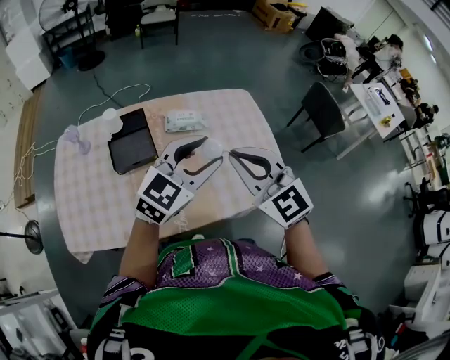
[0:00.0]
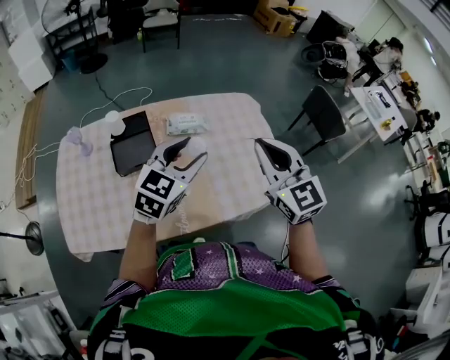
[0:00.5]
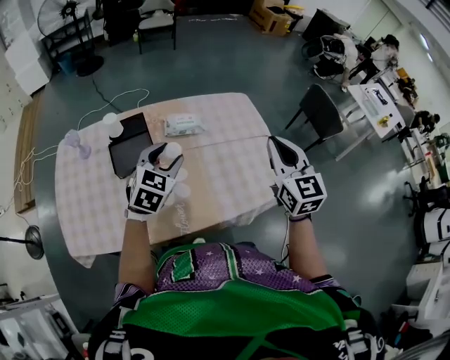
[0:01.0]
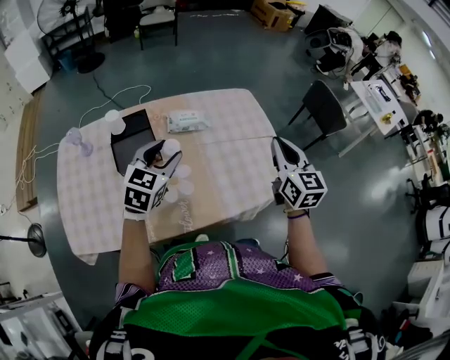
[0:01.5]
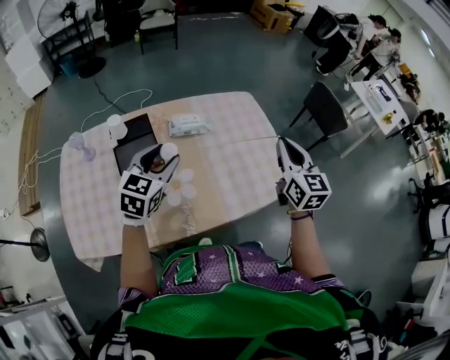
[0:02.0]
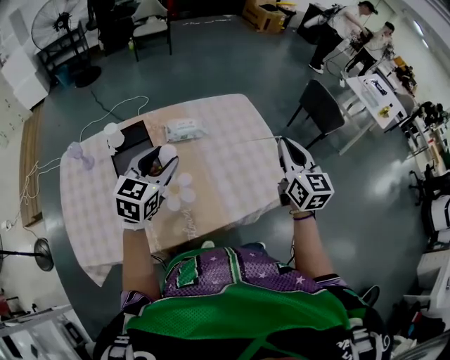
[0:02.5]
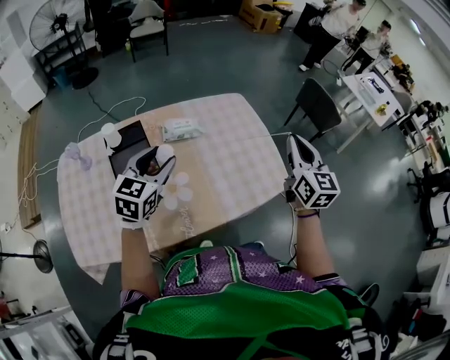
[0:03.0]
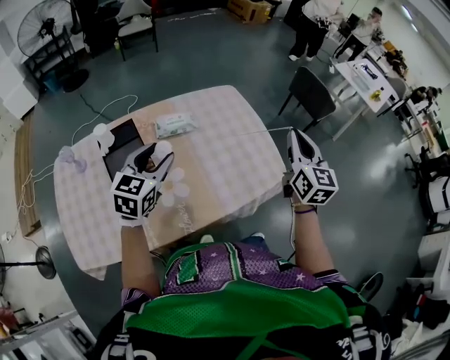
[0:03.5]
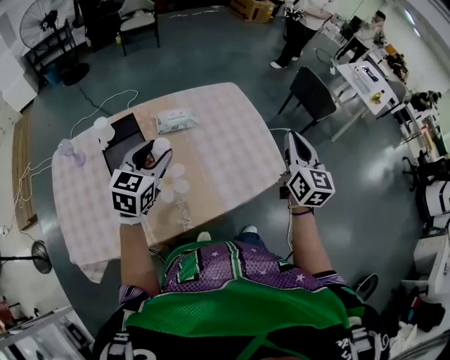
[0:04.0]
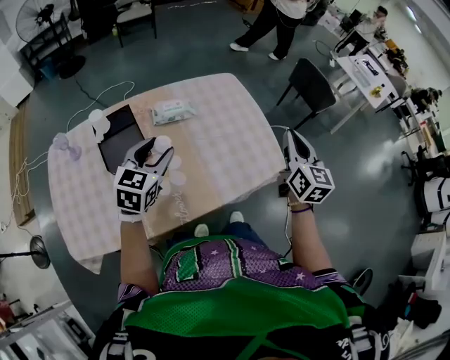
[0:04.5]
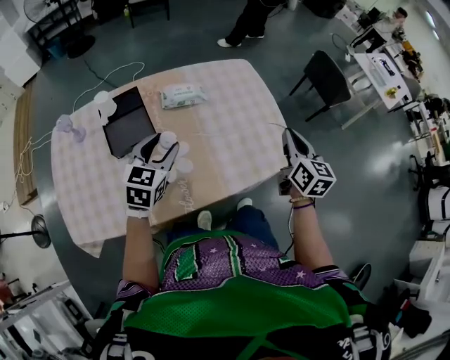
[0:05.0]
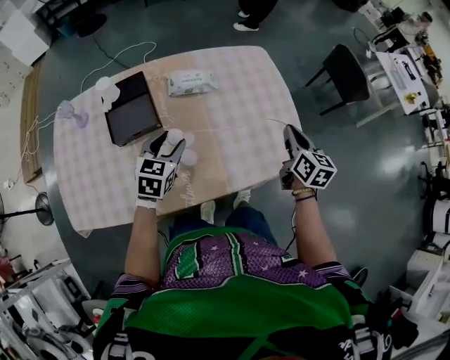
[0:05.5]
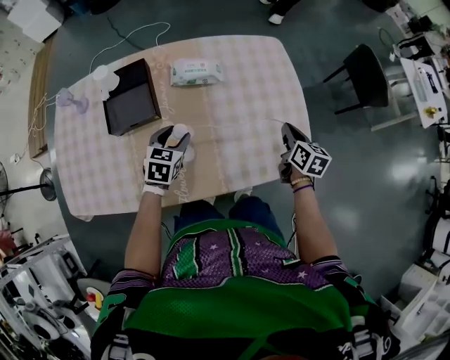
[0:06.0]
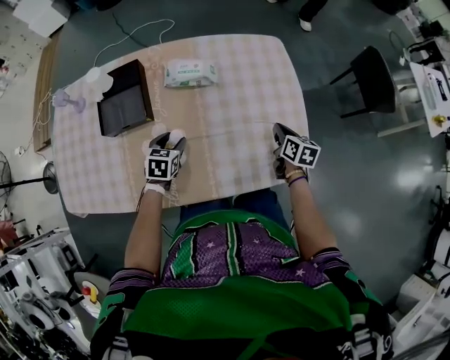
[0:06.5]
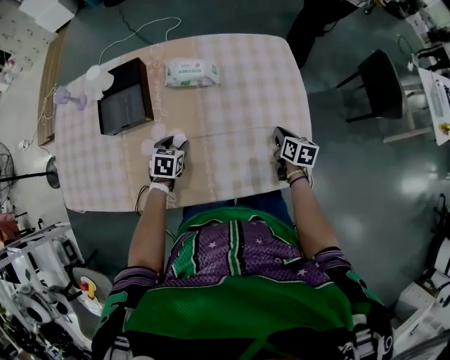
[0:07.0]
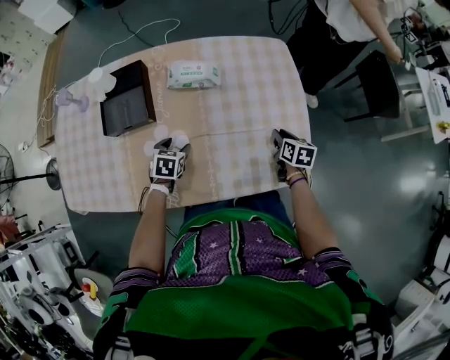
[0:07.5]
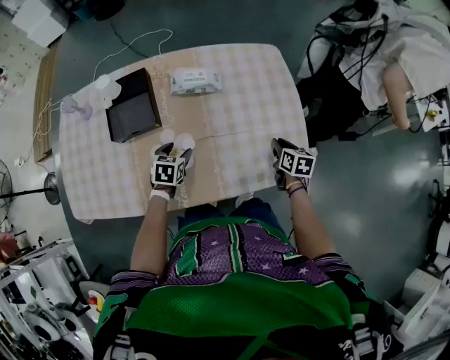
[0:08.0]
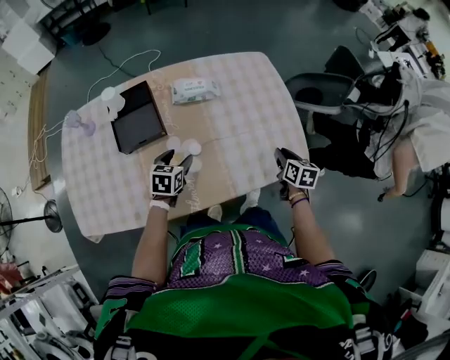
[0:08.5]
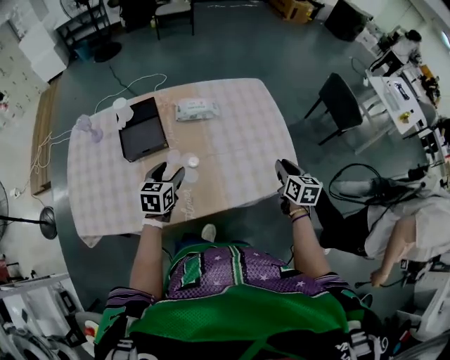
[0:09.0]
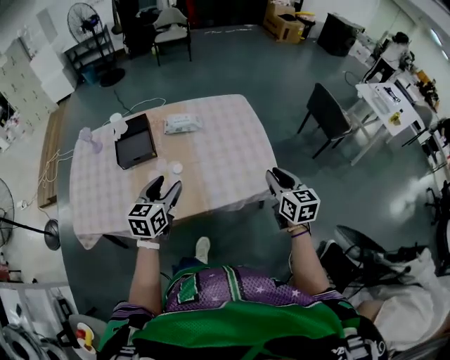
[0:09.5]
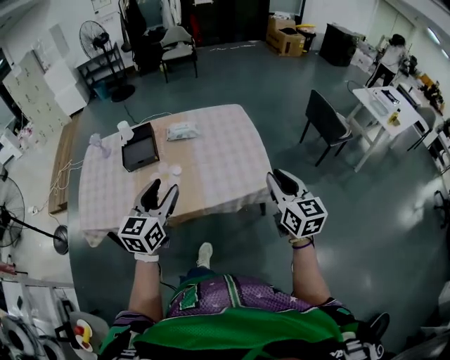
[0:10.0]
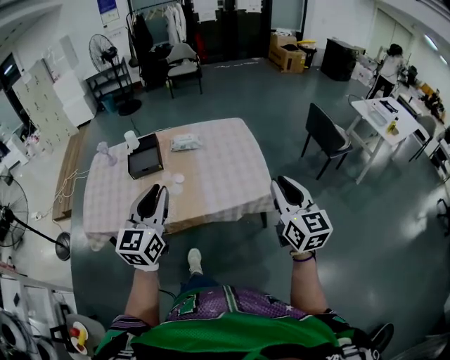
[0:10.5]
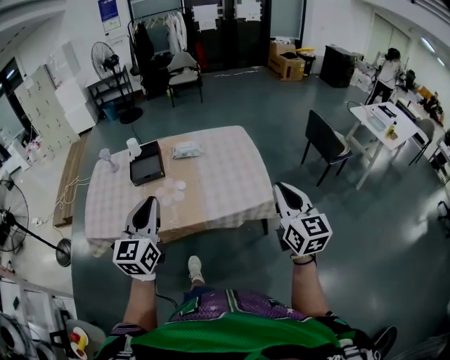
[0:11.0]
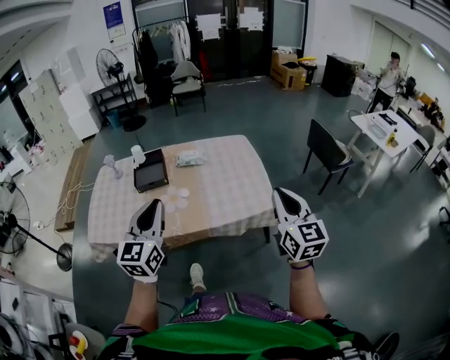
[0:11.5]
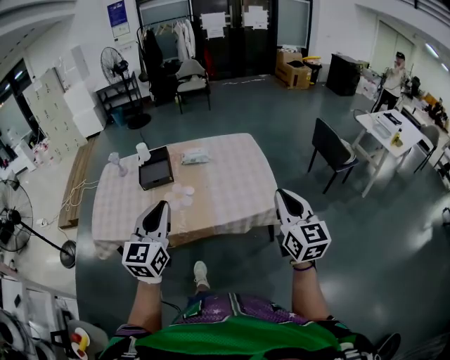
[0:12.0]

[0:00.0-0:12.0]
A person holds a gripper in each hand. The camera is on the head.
0:00.0 to 0:02.0: The left gripper is displaced to the left and downward by approximately 15 cm, and turns by approximately 20 degrees; the right gripper goes about 15 cm to the right and forward, and changes its angle by roughly 50 degrees.
0:02.0 to 0:04.0: The right gripper is displaced to the right by about 5 cm.
0:04.0 to 0:06.0: The left gripper is displaced downward by approximately 25 cm, and changes its angle by approximately 30 degrees. Meanwhile the right gripper shifts approximately 30 cm downward and forward, and rotates some 40 degrees.
0:06.0 to 0:08.0: Both grippers travel together downward, approximately 5 cm.
0:08.0 to 0:10.0: The grippers both shift upward and backward by approximately 50 cm. The right gripper tilts its fingers some 40 degrees upward. The left gripper tips its fingers upward by roughly 50 degrees.
0:10.0 to 0:12.0: The two grippers go approximately 10 cm backward and upward. The left gripper closes.

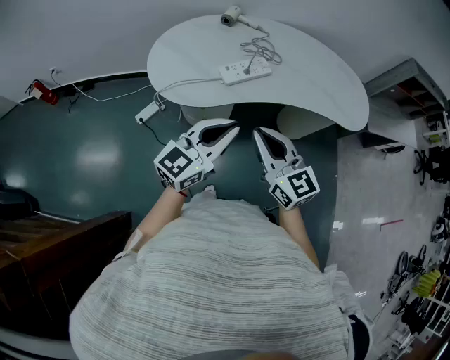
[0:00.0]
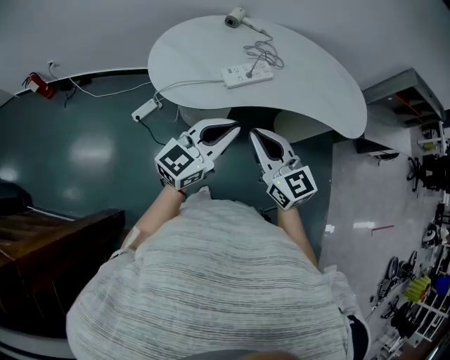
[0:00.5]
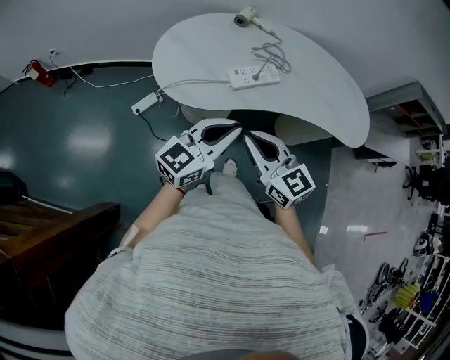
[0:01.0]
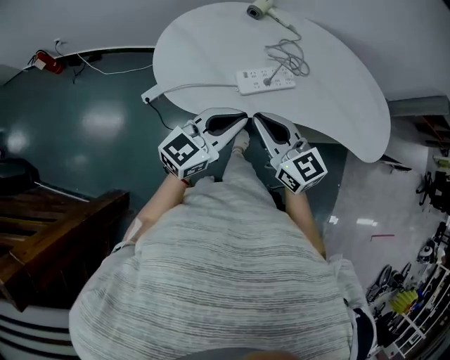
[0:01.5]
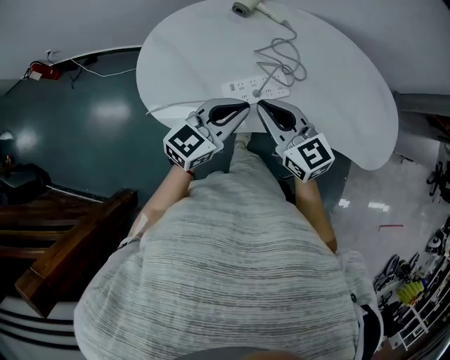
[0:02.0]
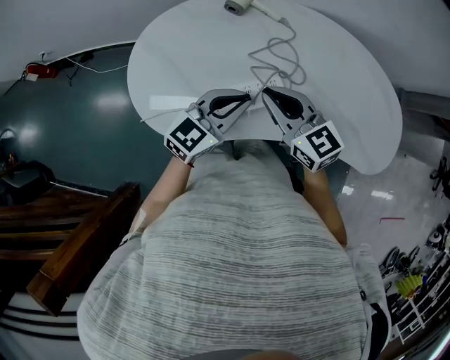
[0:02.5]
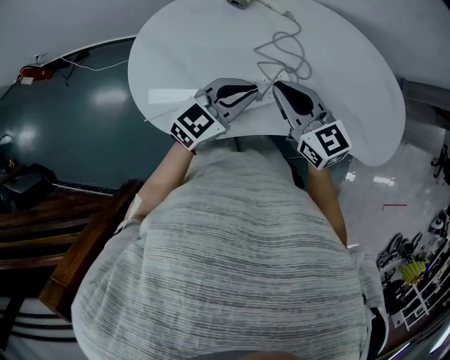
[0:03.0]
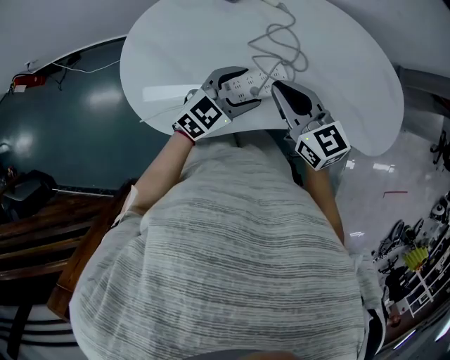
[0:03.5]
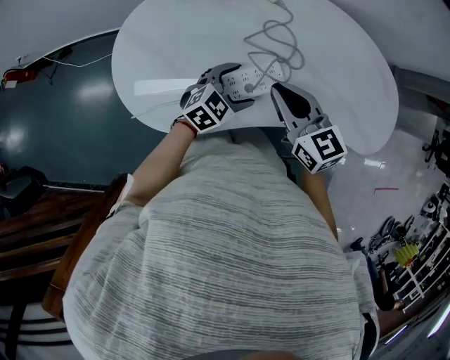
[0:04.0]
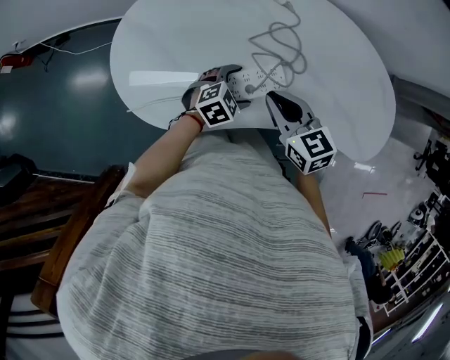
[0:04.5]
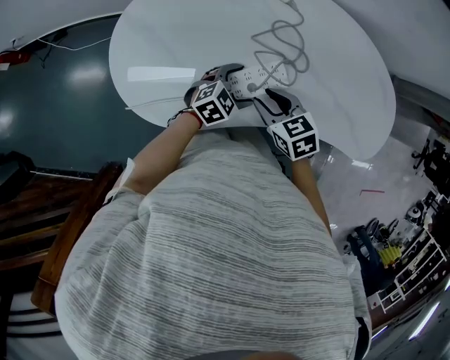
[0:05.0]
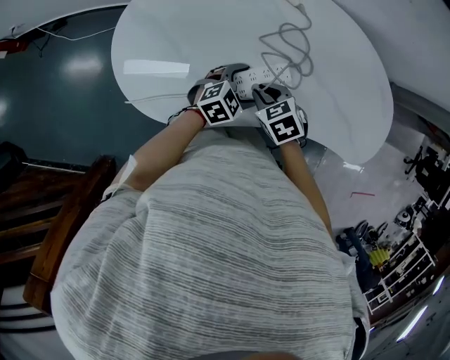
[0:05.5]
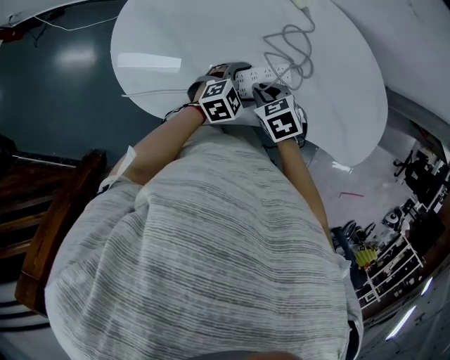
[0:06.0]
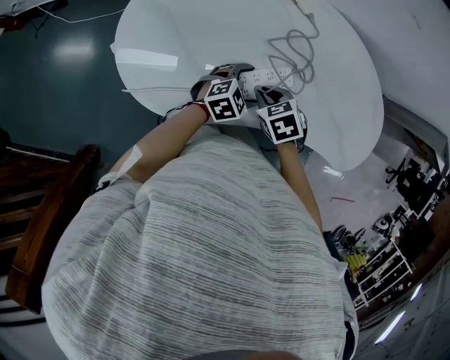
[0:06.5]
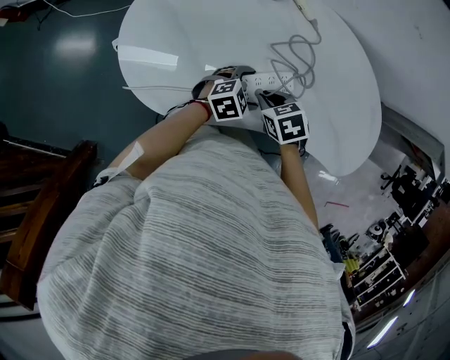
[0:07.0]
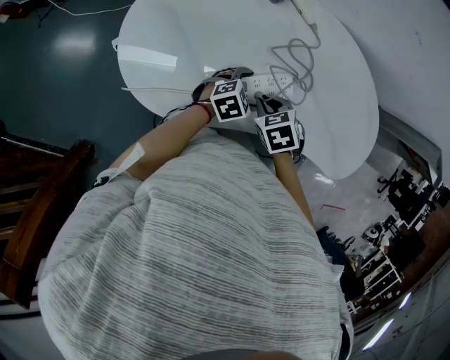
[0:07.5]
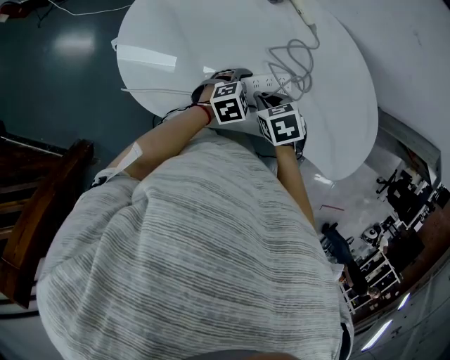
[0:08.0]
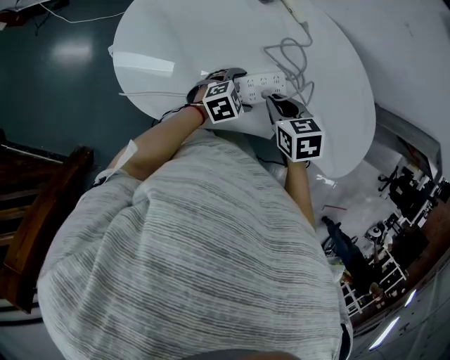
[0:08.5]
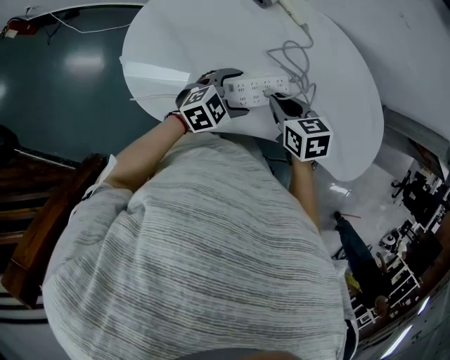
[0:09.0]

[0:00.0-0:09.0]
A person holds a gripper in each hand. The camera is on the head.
0:00.0 to 0:02.0: Both grippers move forward, about 25 cm.
0:02.0 to 0:04.5: The right gripper moves downward and forward, roughly 10 cm, and swivels roughly 20 degrees; the left gripper shifts some 20 cm downward, tilts its fingers some 40 degrees downward, and opens up.
0:04.5 to 0:07.0: The right gripper goes about 10 cm downward, angles its fingers downward, by about 40 degrees, and opens and closes again.
0:07.0 to 0:09.0: The two grippers go roughly 5 cm upward. The right gripper rotates about 20 degrees.

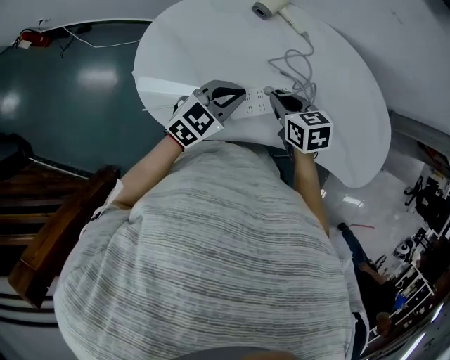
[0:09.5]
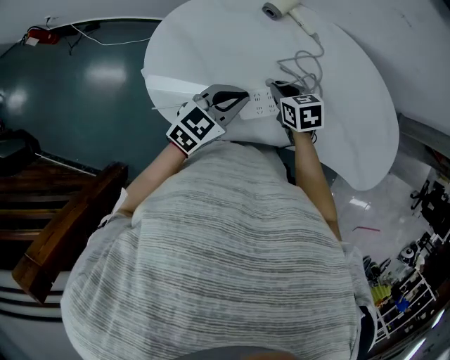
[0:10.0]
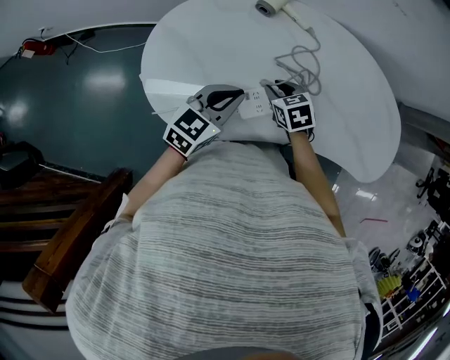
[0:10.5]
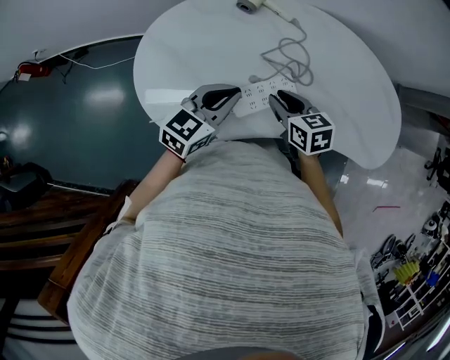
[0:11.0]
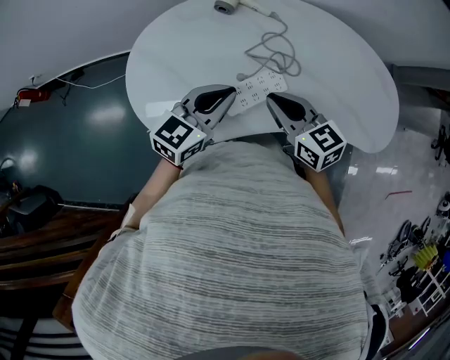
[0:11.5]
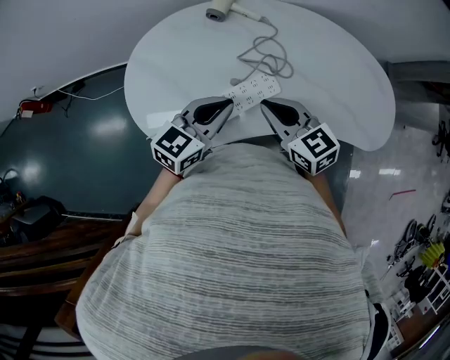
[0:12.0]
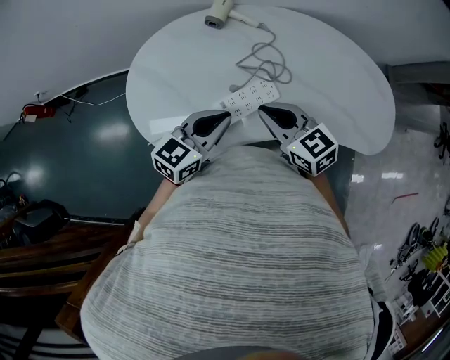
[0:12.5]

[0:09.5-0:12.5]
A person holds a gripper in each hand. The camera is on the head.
0:09.5 to 0:11.0: The right gripper reaches roughly 10 cm downward, then returns.
0:11.0 to 0:12.5: The right gripper shifts about 10 cm upward, rotates approximately 20 degrees, and closes. The left gripper shifts by some 5 cm.

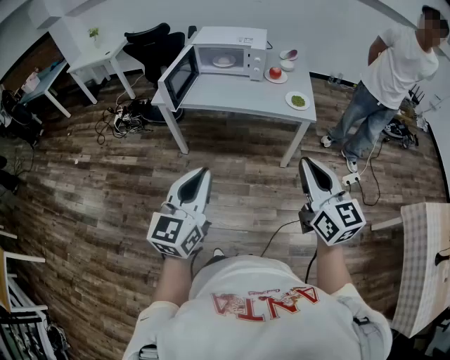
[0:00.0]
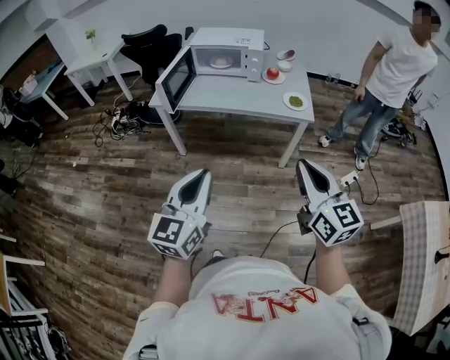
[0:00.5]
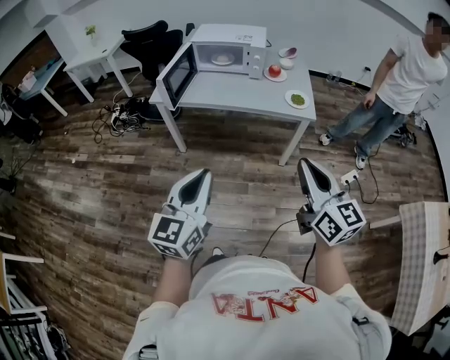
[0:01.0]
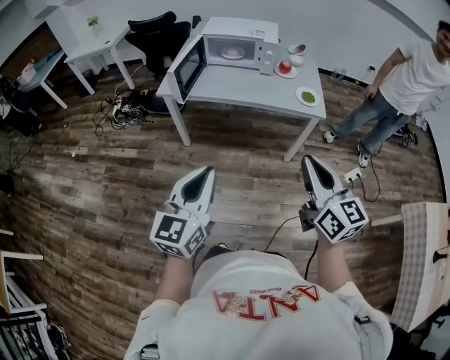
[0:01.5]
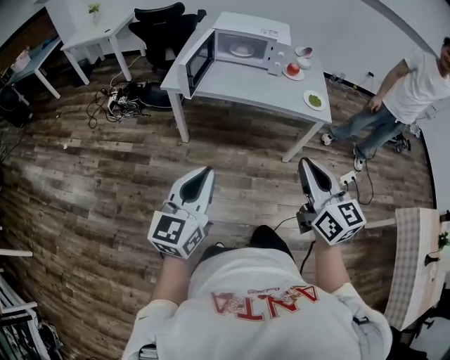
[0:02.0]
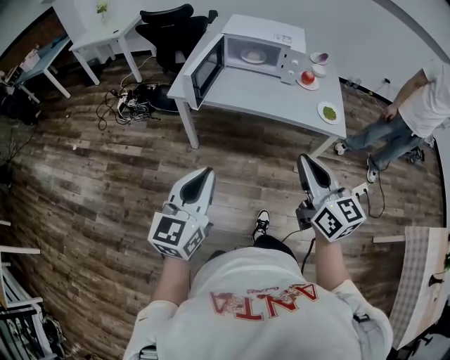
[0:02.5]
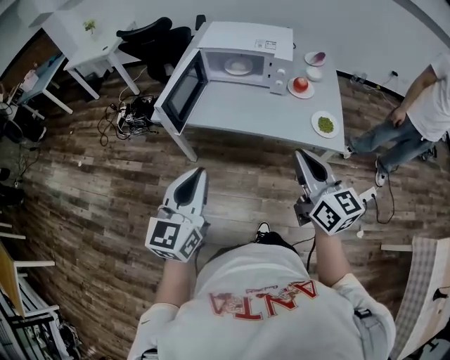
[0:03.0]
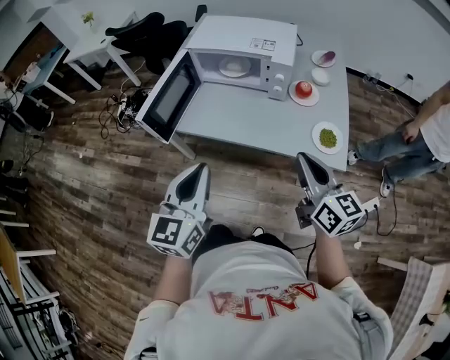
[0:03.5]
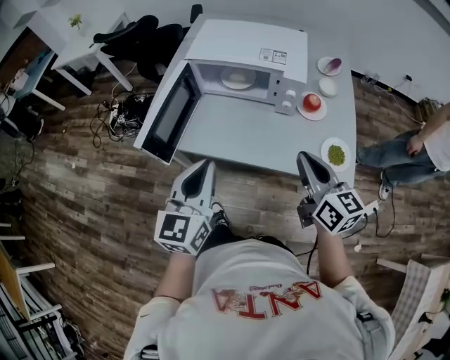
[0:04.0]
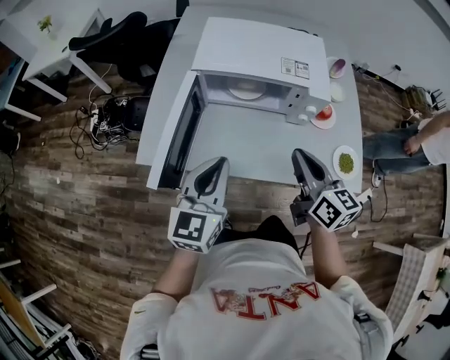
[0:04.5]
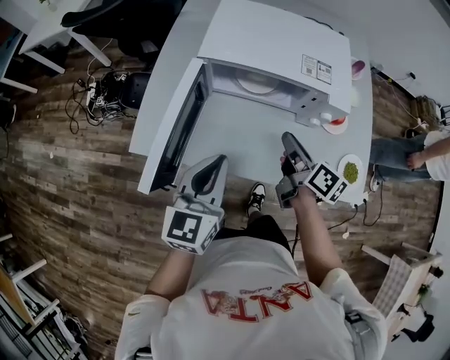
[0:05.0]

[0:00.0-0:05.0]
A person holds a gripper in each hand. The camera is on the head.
0:00.0 to 0:02.5: The grippers both shift to the left and forward by about 20 cm.
0:02.5 to 0:05.0: The pair of grippers is taken forward, roughly 50 cm. The right gripper twists roughly 40 degrees clockwise, seen from behind.
